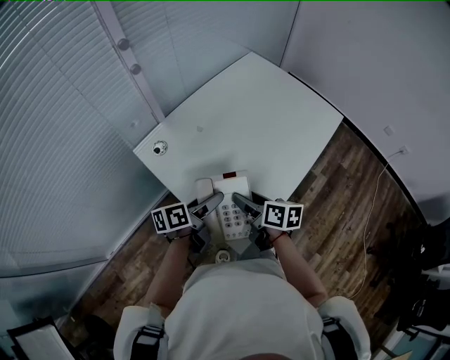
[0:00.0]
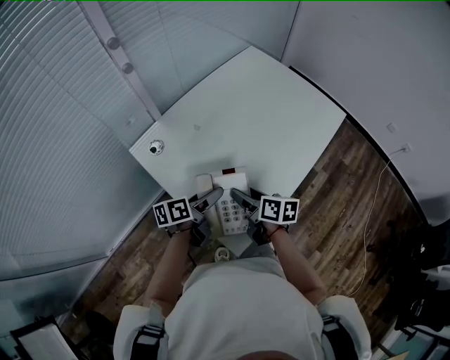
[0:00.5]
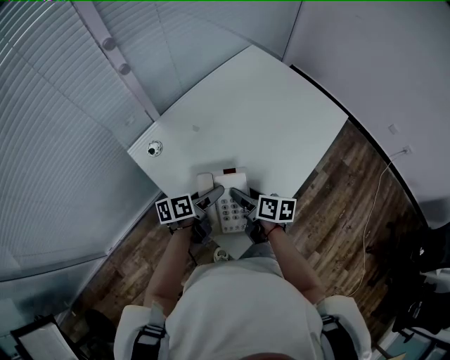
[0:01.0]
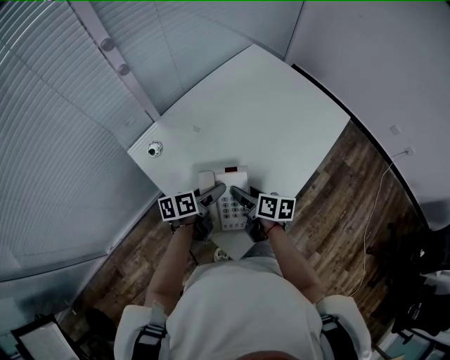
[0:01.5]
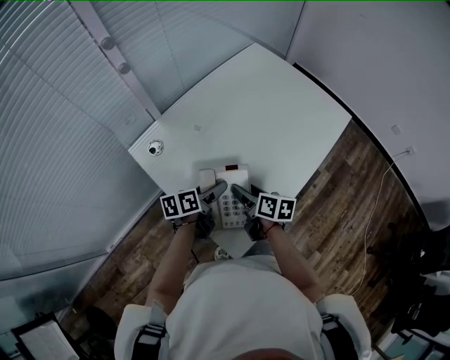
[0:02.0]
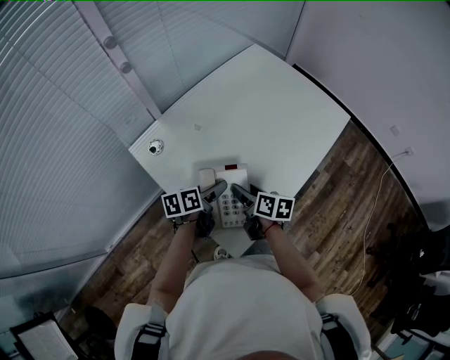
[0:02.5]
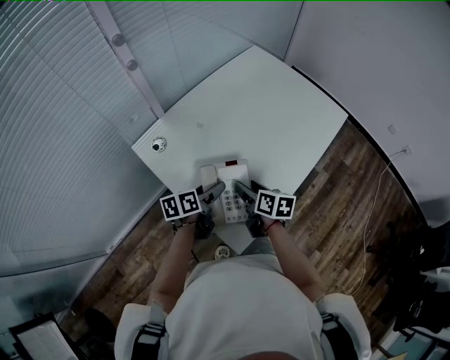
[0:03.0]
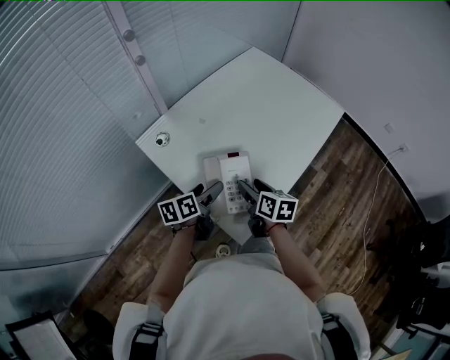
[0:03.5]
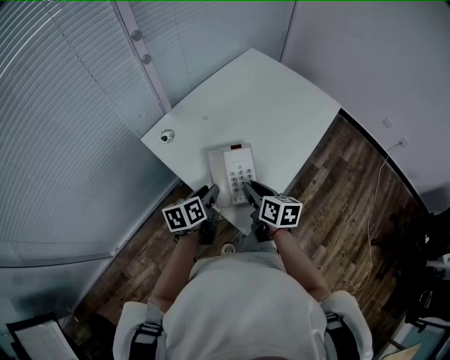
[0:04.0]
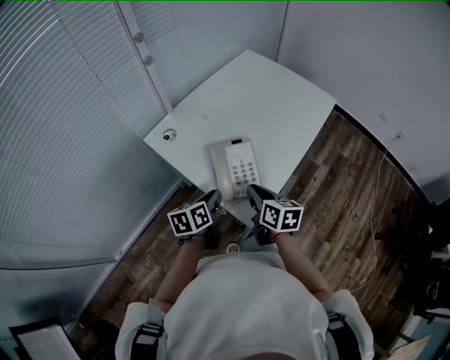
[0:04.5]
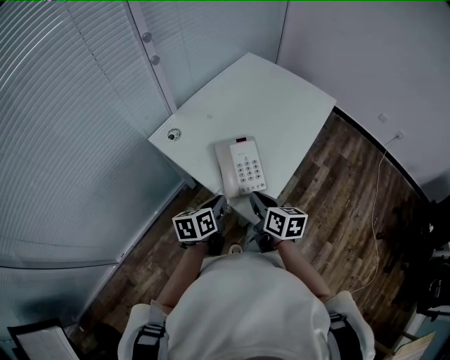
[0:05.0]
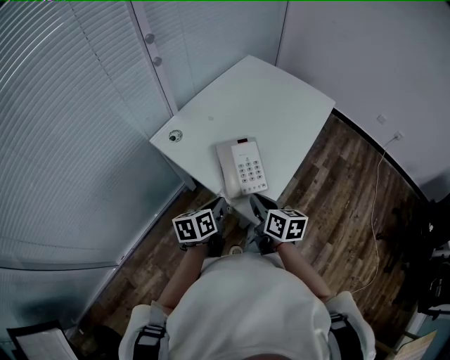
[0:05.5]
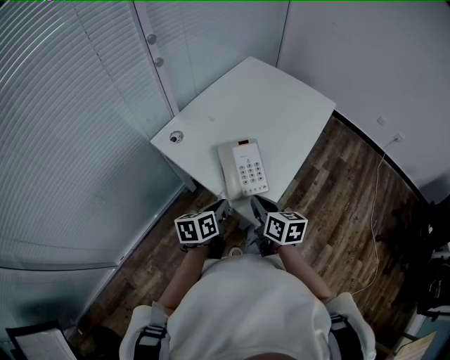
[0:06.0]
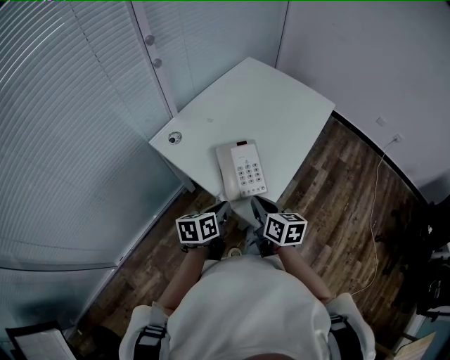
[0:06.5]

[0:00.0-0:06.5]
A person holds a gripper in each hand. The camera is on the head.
0:00.0 to 0:02.0: The left gripper heads forward and downward, covering about 10 cm. Meanwhile the right gripper travels downward and forward by roughly 10 cm.
0:02.0 to 0:04.5: The left gripper moves backward, about 15 cm, and closes. Meanwhile the right gripper shifts about 15 cm backward and upward, and closes up.
0:04.5 to 0:06.5: There are only small adjustments of the grippers.

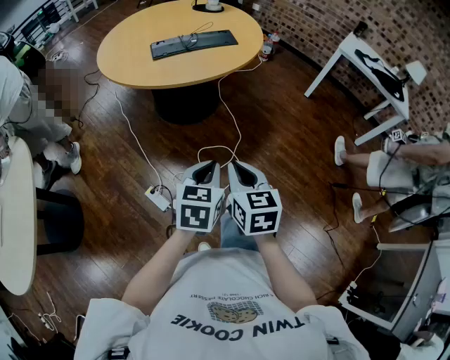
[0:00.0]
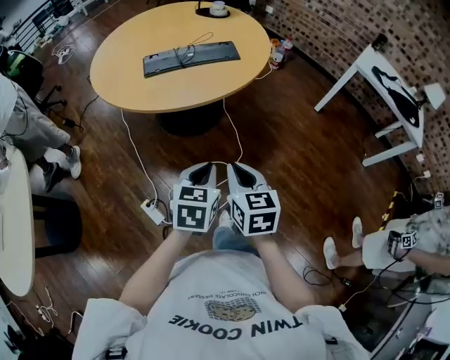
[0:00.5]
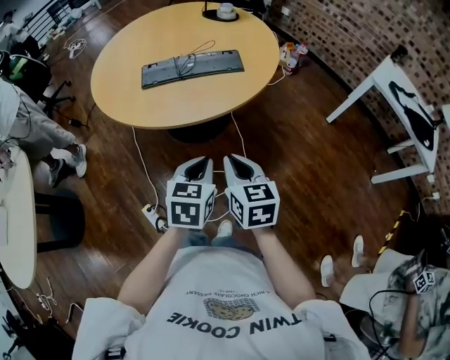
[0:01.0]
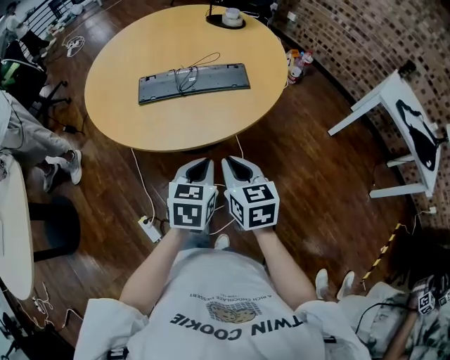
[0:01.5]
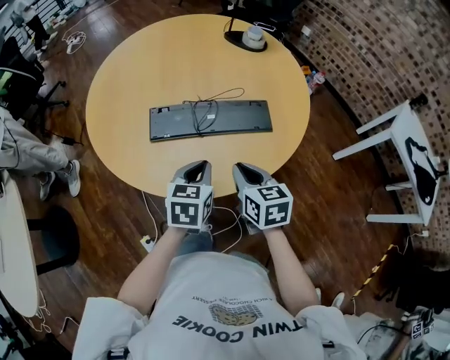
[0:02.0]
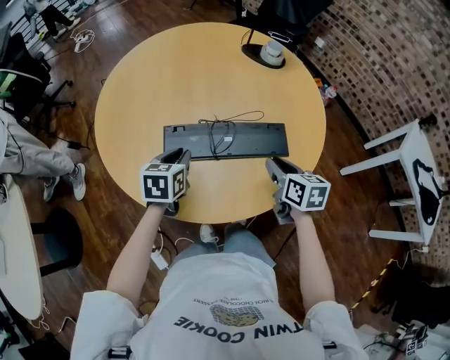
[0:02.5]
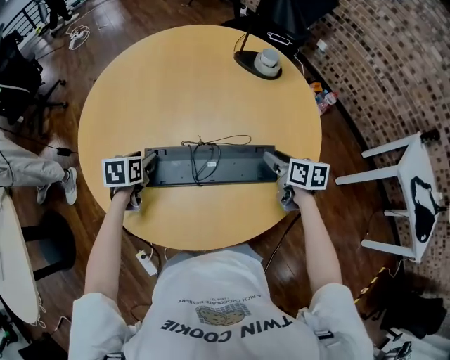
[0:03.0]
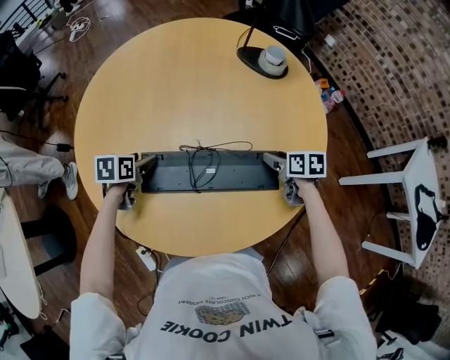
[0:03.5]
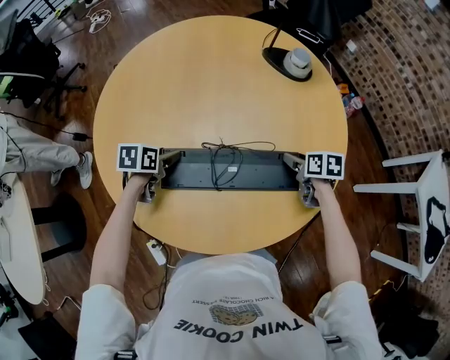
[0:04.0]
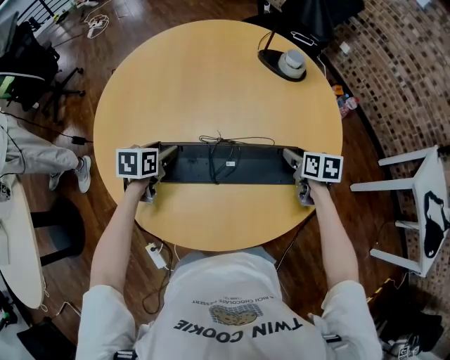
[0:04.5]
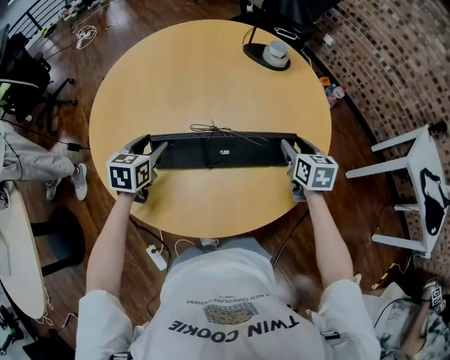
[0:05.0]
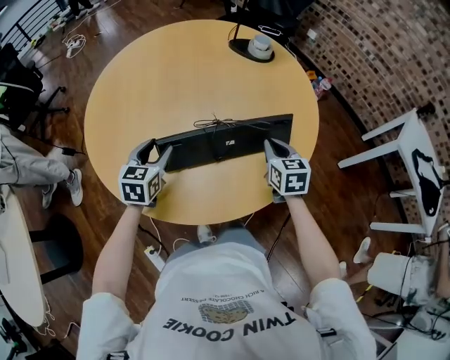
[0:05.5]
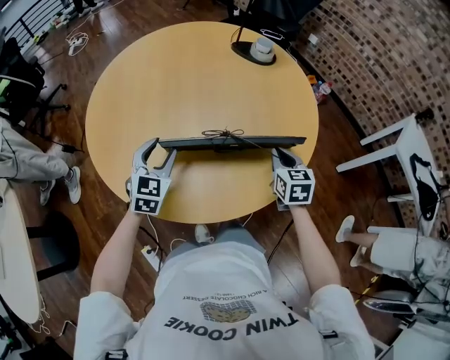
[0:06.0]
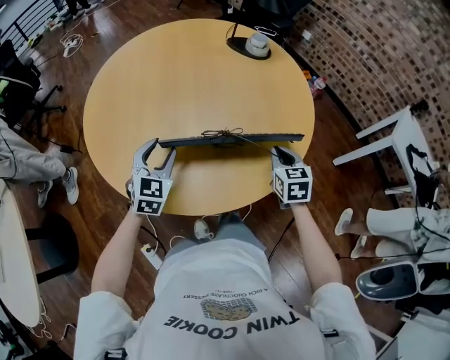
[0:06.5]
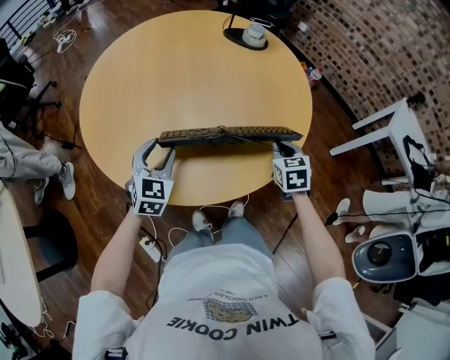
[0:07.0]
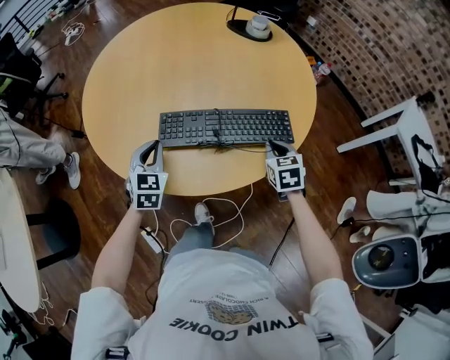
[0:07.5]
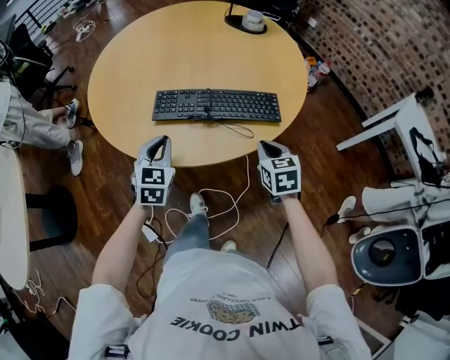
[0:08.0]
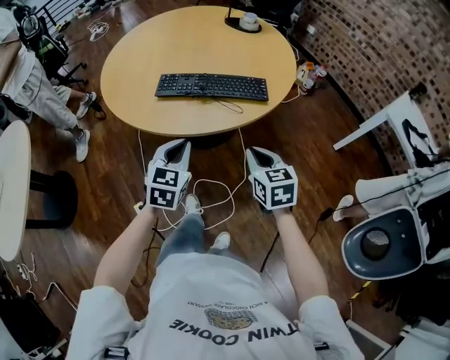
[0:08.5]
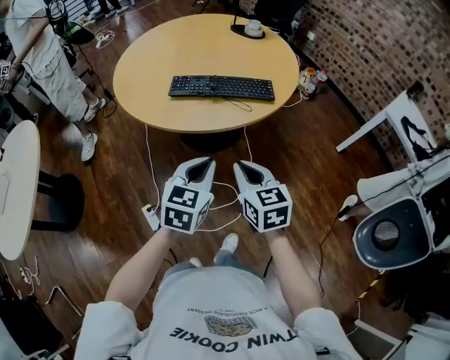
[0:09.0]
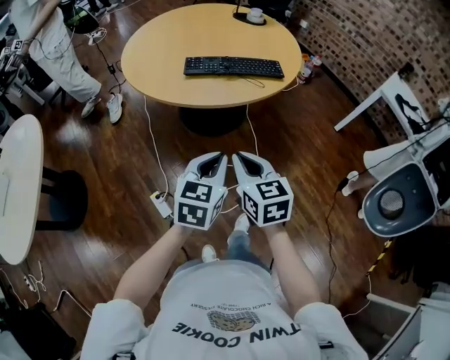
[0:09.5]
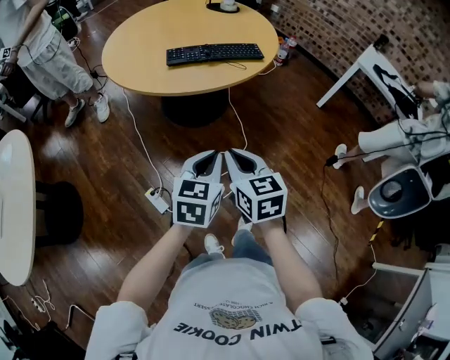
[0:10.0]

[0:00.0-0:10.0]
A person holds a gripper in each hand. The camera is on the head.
0:00.0 to 0:02.0: The two grippers travel together, forward, approximately 50 cm.
0:02.0 to 0:04.0: The right gripper moves forward, to the right and downward, some 35 cm, swivels approximately 30 degrees, and opens up; the left gripper is displaced forward, to the left and downward by roughly 30 cm, changes its angle by some 30 degrees, and opens its fingers.
0:04.0 to 0:06.0: The left gripper moves upward, backward and to the right, some 15 cm, and changes its angle by some 60 degrees, while the right gripper shifts roughly 15 cm backward and upward, rotates about 40 degrees, and closes up.
0:06.0 to 0:08.0: Both grippers travel together backward, roughly 15 cm. The left gripper closes its fingers.
0:08.0 to 0:10.0: The pair of grippers is taken backward, roughly 40 cm. The left gripper turns by roughly 30 degrees.

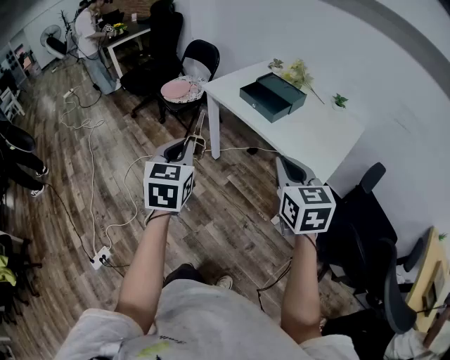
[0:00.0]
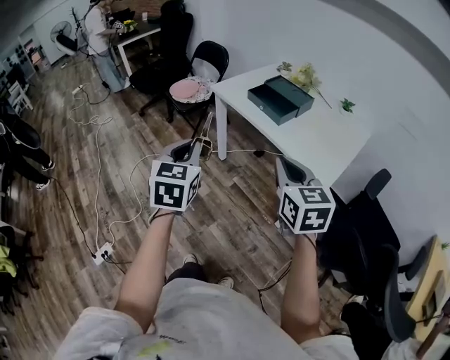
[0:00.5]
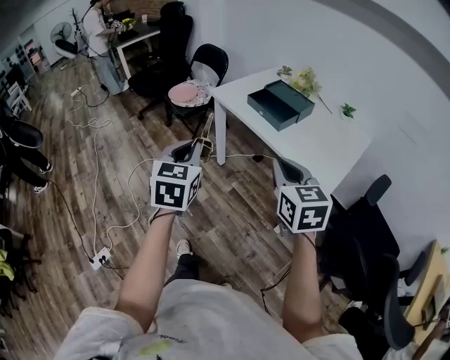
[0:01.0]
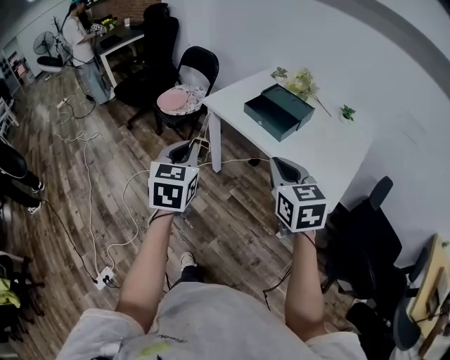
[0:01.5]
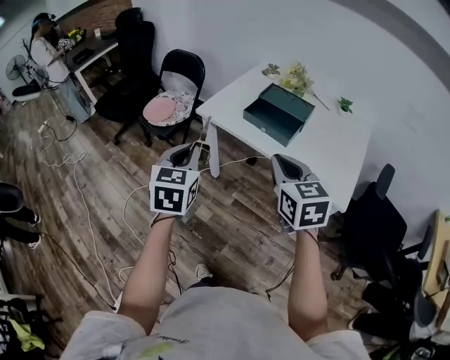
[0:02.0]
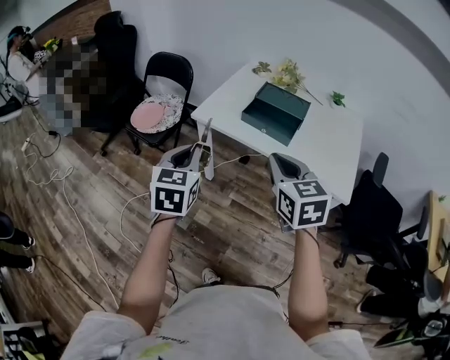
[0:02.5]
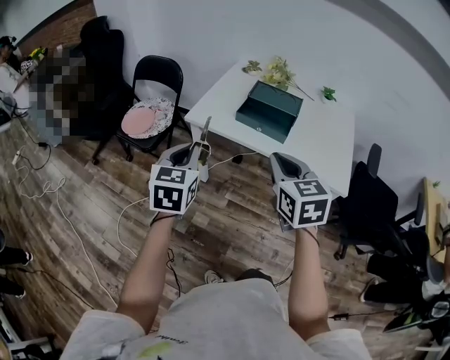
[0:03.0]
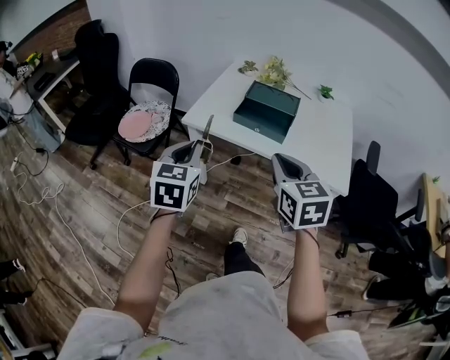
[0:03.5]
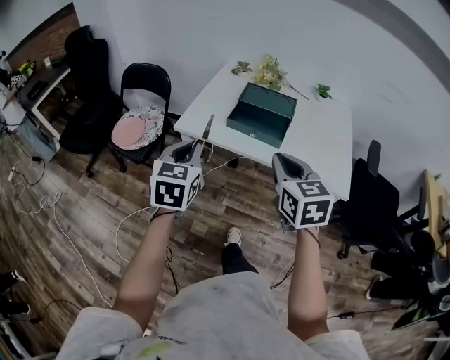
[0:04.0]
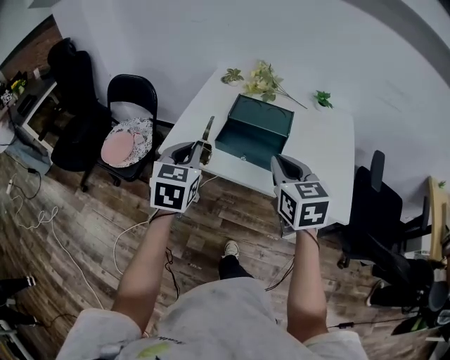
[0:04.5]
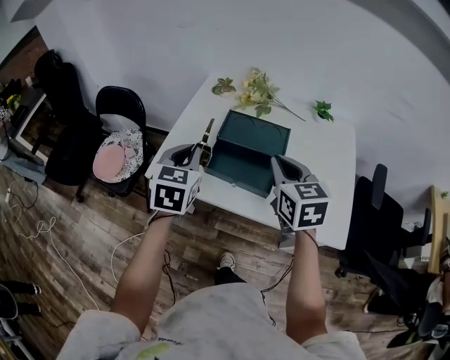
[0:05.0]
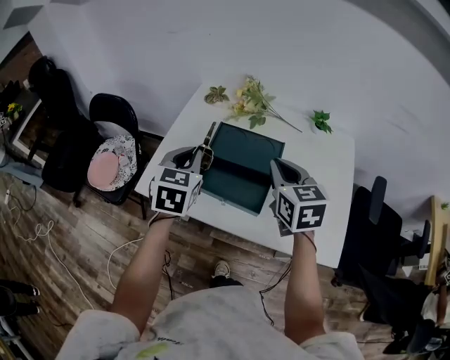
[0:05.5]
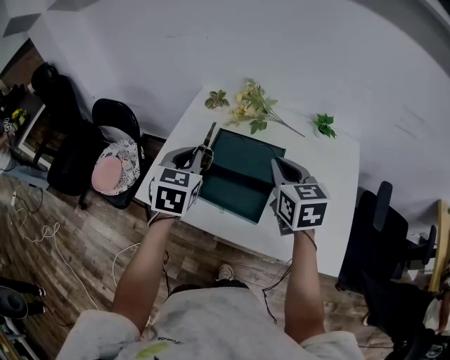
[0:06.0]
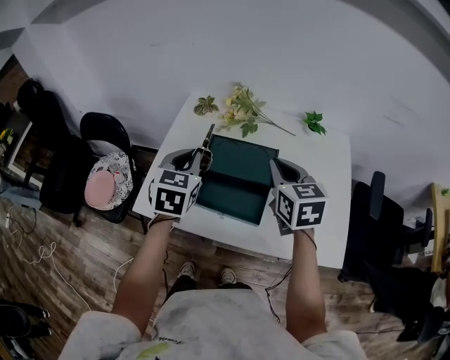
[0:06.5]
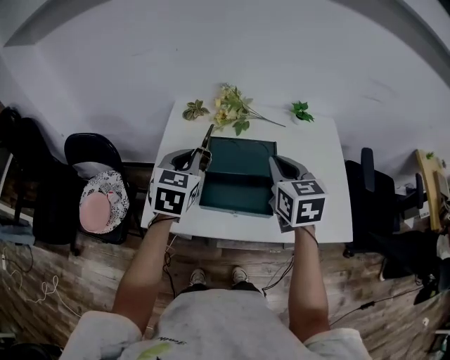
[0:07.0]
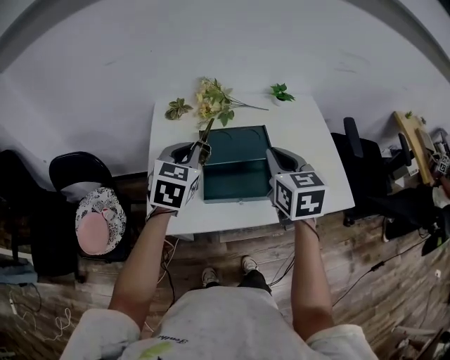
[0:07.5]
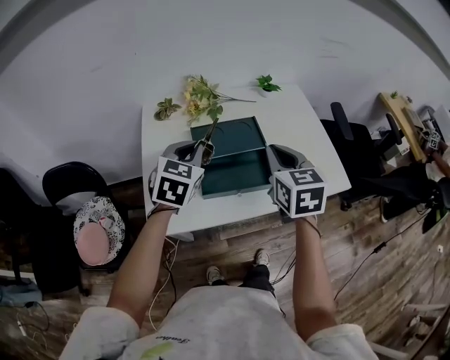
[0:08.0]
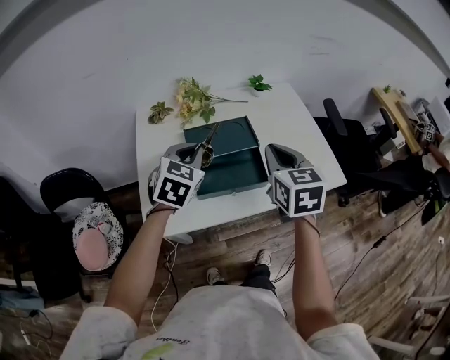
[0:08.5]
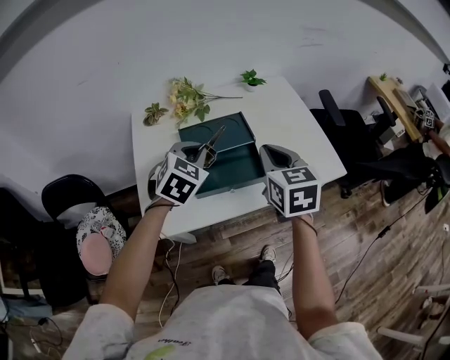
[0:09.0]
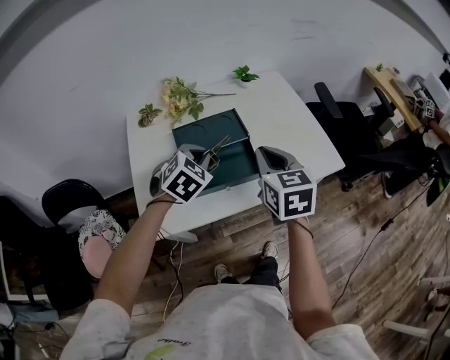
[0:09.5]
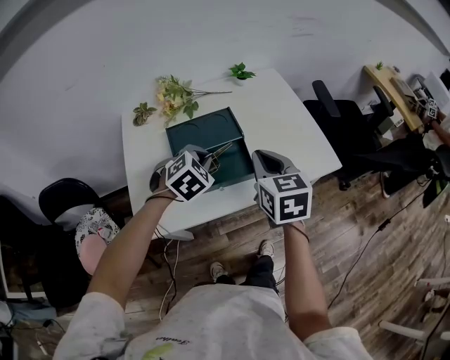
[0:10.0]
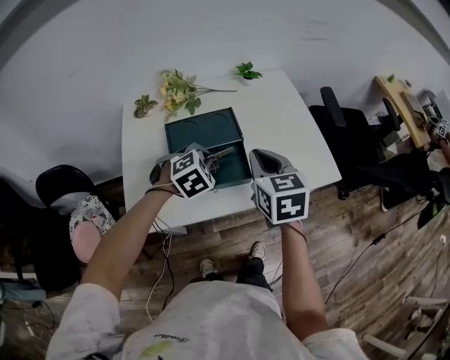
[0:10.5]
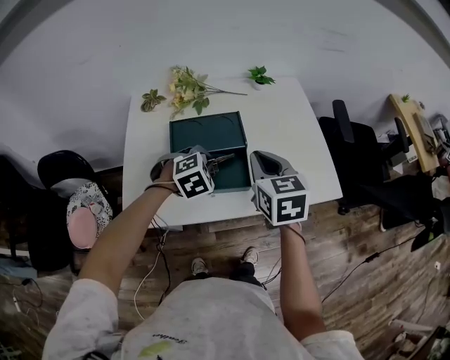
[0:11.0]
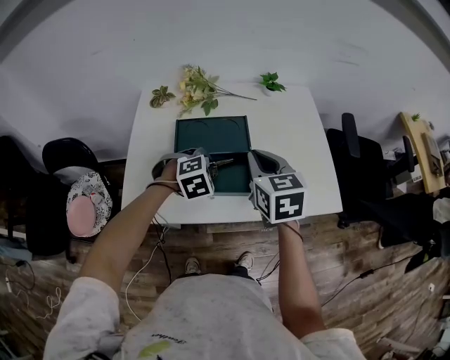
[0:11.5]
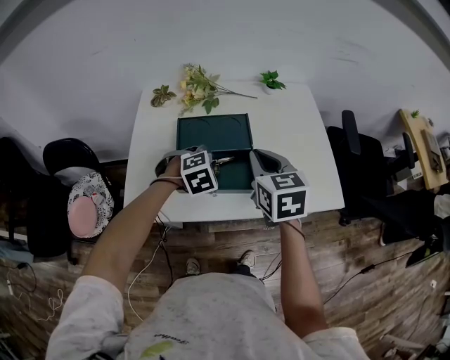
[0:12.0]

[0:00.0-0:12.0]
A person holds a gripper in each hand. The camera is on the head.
0:00.0 to 0:02.0: The right gripper heads forward and to the left, covering some 20 cm. The left gripper heads forward, covering approximately 20 cm.
0:02.0 to 0:04.0: The right gripper is displaced forward by roughly 5 cm. The left gripper moves forward, approximately 10 cm.
0:04.0 to 0:06.0: The two grippers go approximately 35 cm forward and to the right.
0:06.0 to 0:08.0: The left gripper swivels about 40 degrees, while the right gripper changes place by some 10 cm, and turns by some 30 degrees.
0:08.0 to 0:10.0: The left gripper shifts approximately 15 cm to the right and downward, and turns by about 40 degrees. Meanwhile the right gripper ends up about 5 cm from where it was.
0:10.0 to 0:12.0: The right gripper is displaced forward by some 5 cm, while the left gripper shifts some 5 cm downward.
